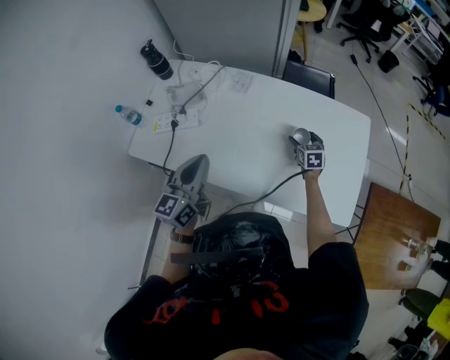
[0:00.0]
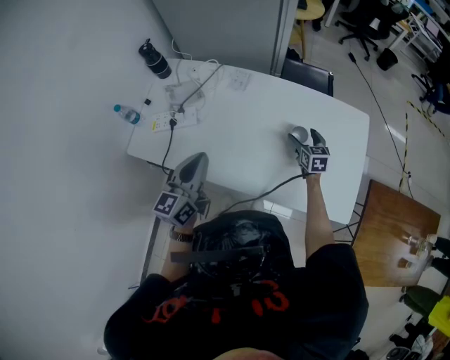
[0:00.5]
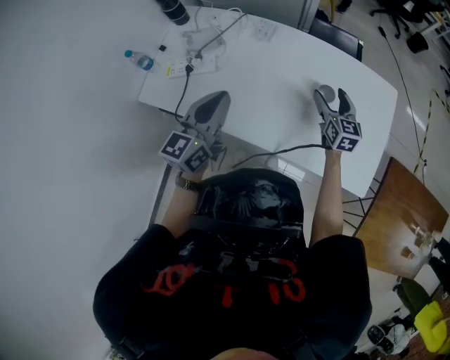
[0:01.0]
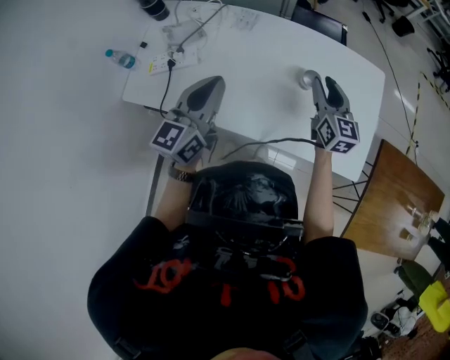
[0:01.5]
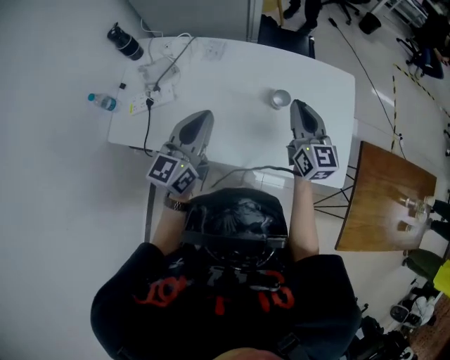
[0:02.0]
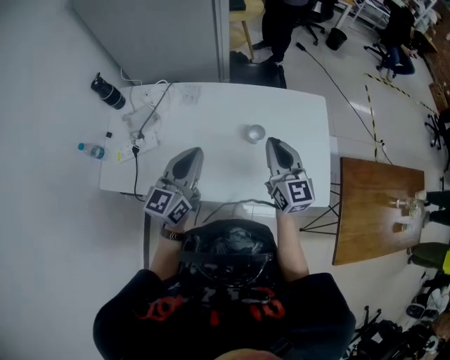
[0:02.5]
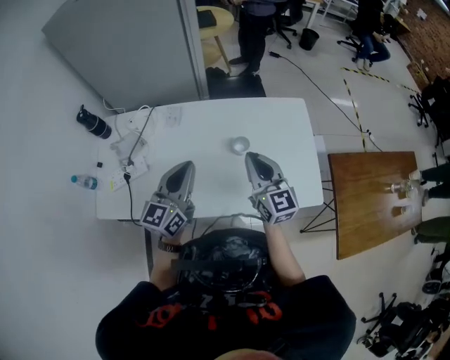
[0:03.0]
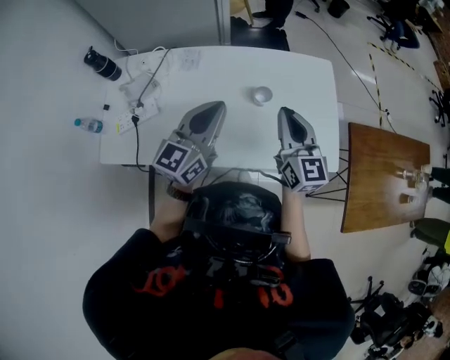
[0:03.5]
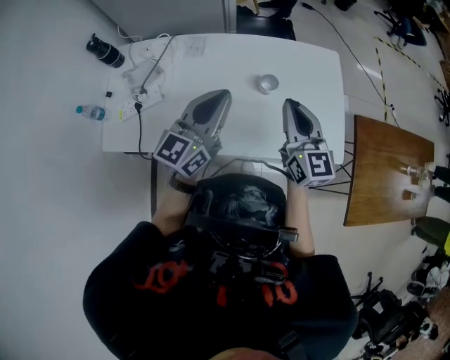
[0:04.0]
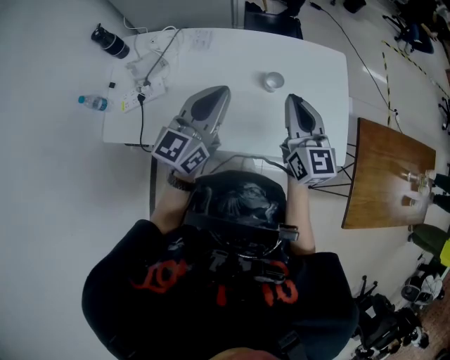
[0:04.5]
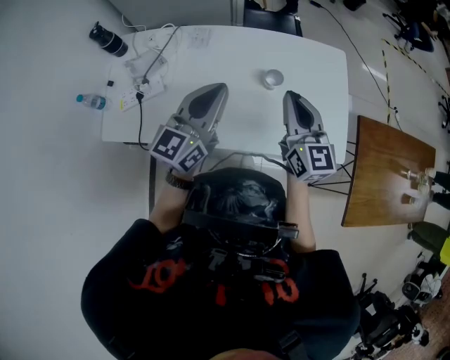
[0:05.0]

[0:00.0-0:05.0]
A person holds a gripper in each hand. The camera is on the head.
0:00.0 to 0:02.5: The left gripper is displaced to the right by approximately 10 cm, while the right gripper heads upward and backward, covering roughly 30 cm, angles its fingers upward, by some 40 degrees, and closes up.
0:02.5 to 0:05.0: There are only small adjustments of the grippers.

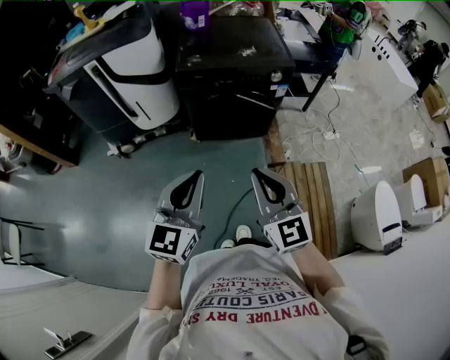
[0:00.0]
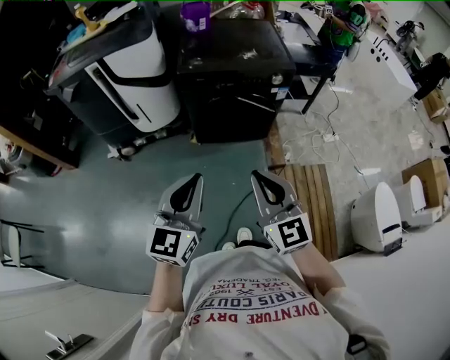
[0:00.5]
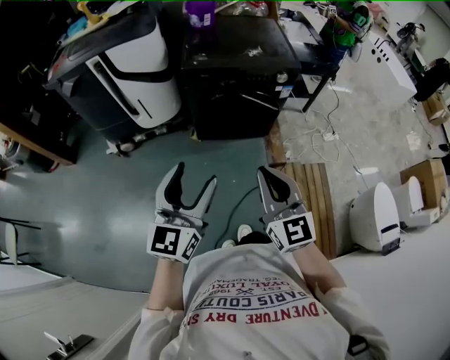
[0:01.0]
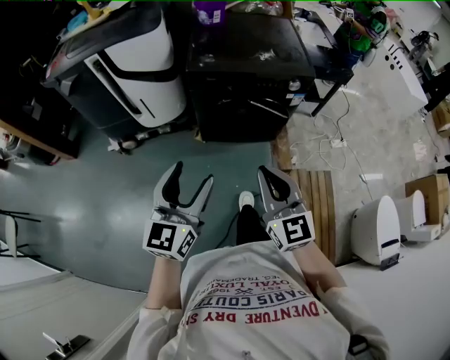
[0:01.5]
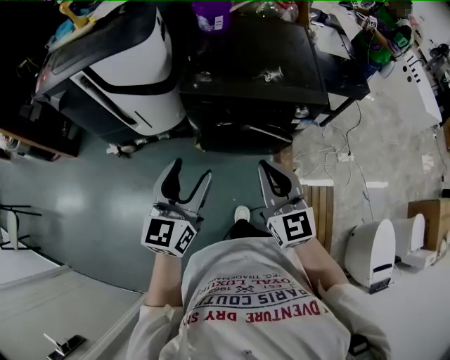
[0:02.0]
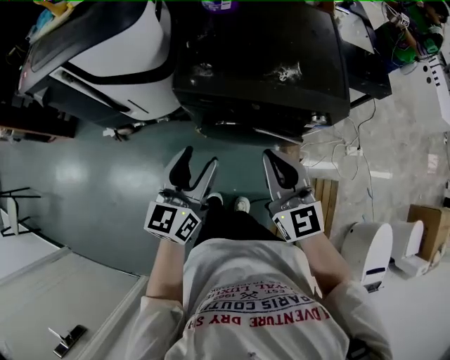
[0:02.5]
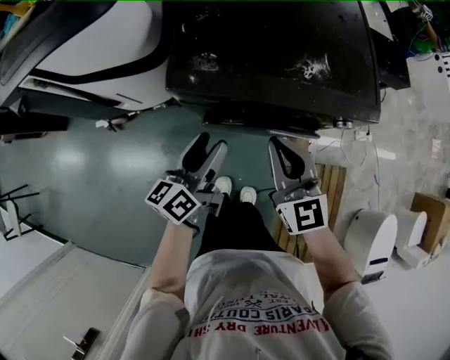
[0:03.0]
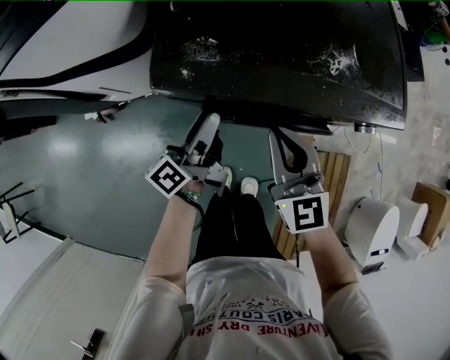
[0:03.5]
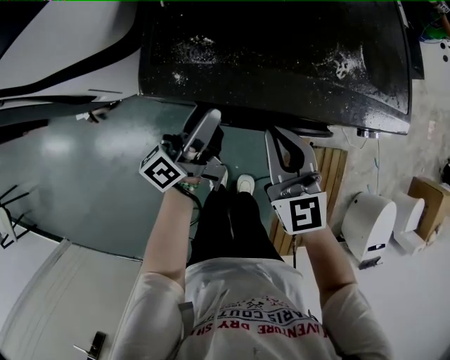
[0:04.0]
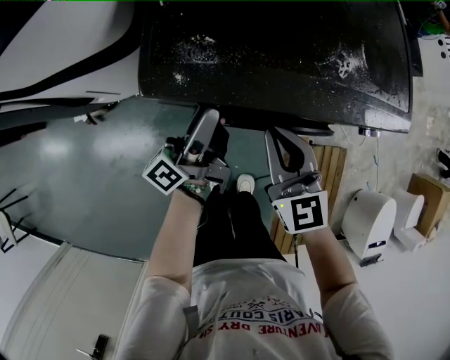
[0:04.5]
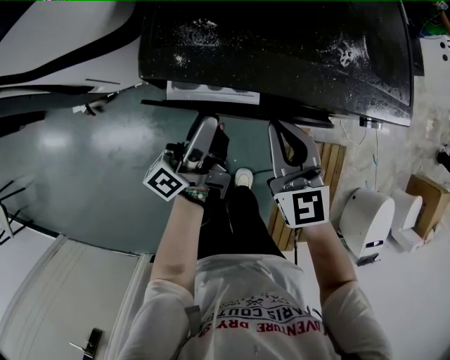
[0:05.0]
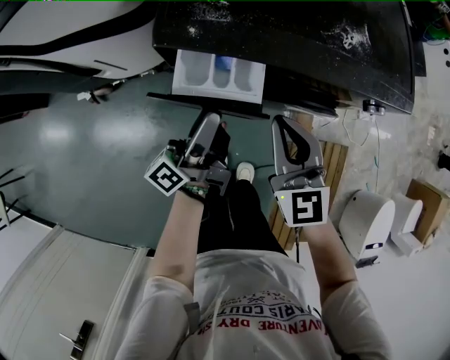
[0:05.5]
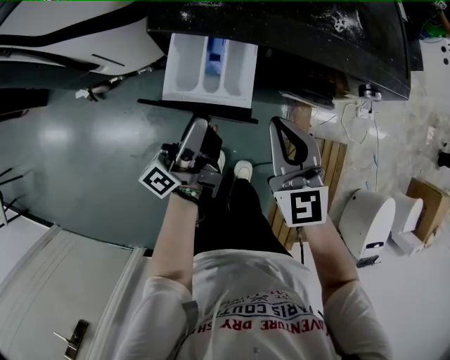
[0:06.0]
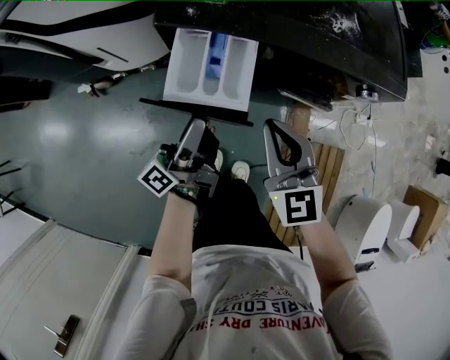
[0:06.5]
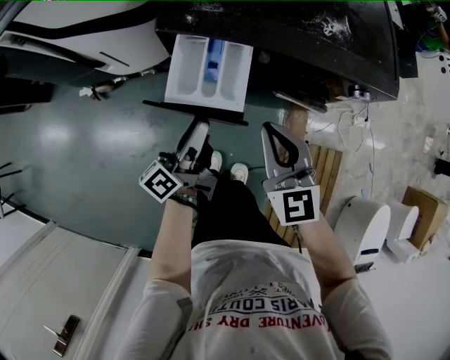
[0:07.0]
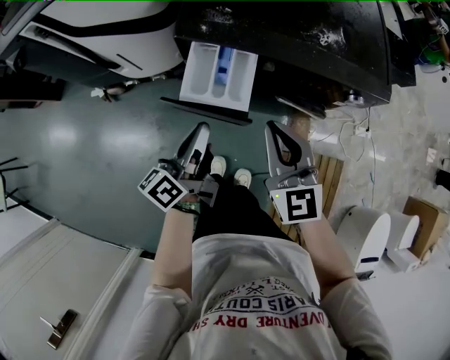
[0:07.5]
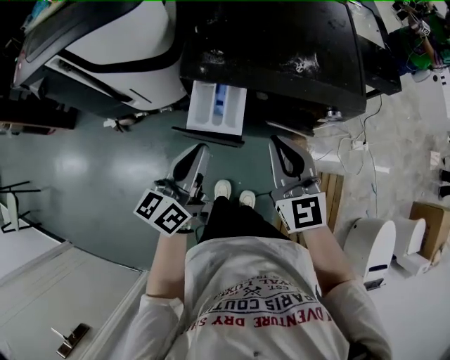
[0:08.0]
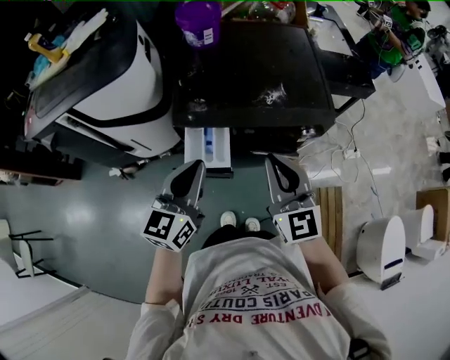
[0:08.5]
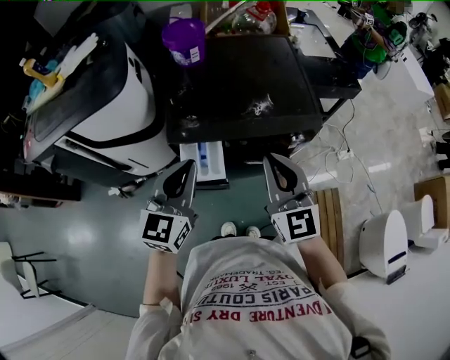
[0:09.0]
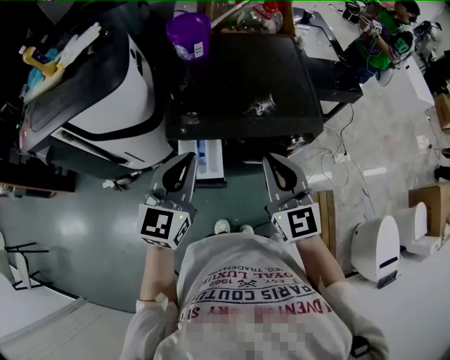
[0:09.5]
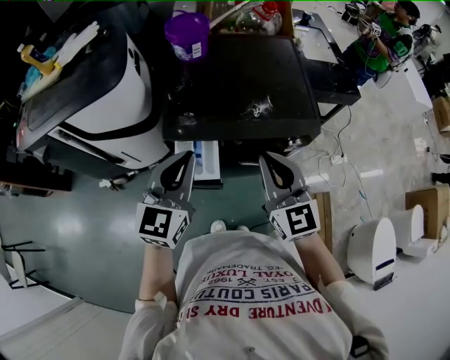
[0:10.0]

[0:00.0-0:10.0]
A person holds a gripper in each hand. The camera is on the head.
0:00.0 to 0:02.0: The two grippers go approximately 25 cm forward. The left gripper opens its fingers.
0:02.0 to 0:04.0: The two grippers go about 35 cm forward and downward. The left gripper rolls counterclockwise, seen from behind, by about 60 degrees.
0:04.0 to 0:06.0: Both grippers travel together backward, some 10 cm.
0:06.0 to 0:08.0: The two grippers go roughly 15 cm upward. The left gripper rotates about 50 degrees, and closes.
0:08.0 to 0:10.0: The left gripper travels upward and forward by roughly 15 cm, and rolls clockwise, seen from behind, by approximately 40 degrees; the right gripper shifts some 10 cm upward.

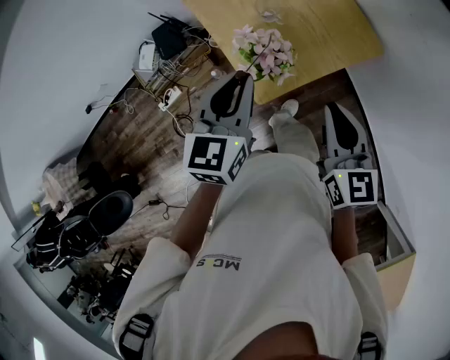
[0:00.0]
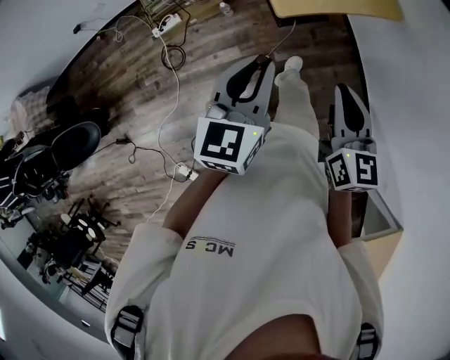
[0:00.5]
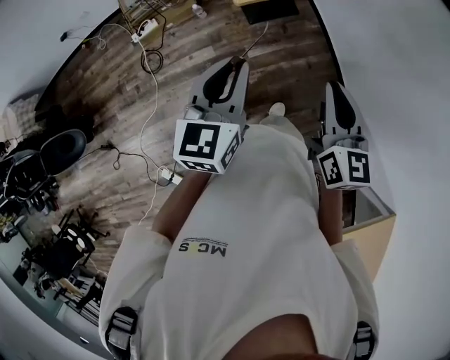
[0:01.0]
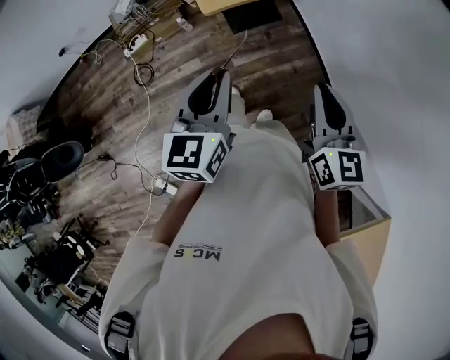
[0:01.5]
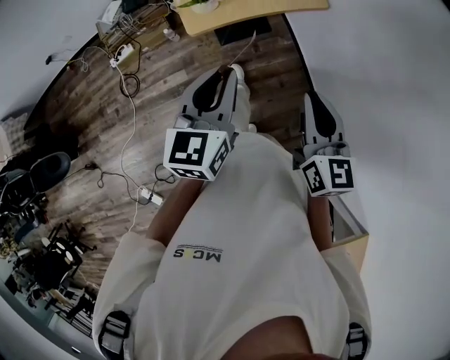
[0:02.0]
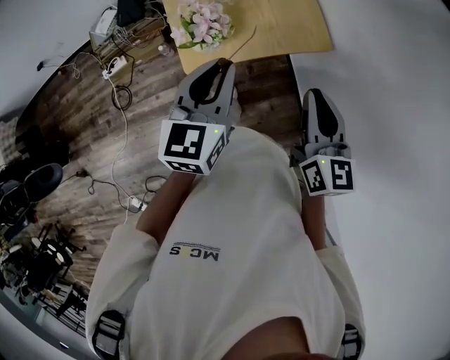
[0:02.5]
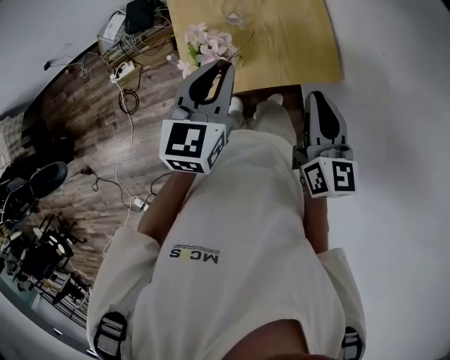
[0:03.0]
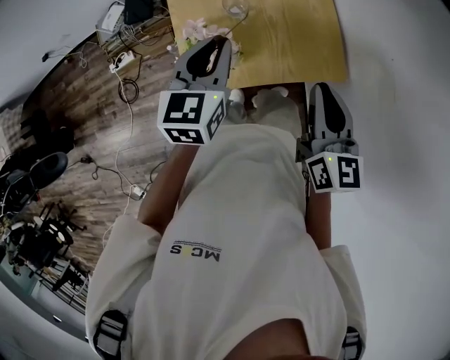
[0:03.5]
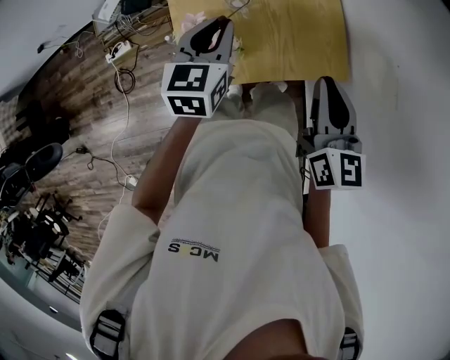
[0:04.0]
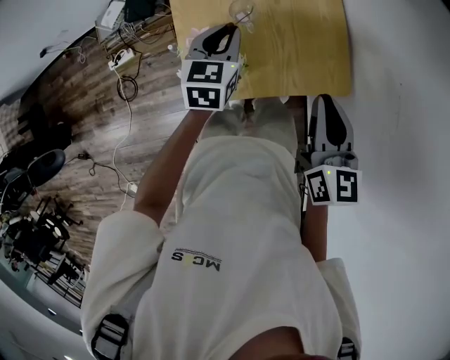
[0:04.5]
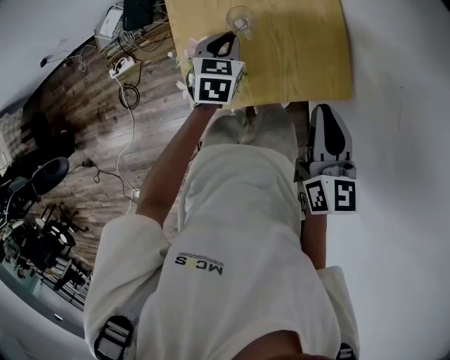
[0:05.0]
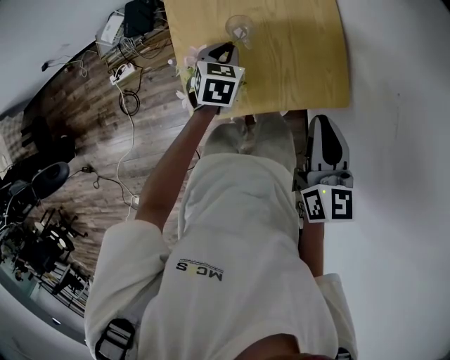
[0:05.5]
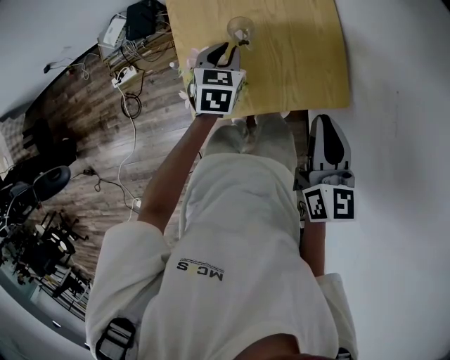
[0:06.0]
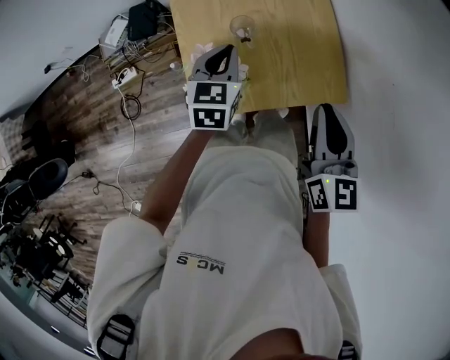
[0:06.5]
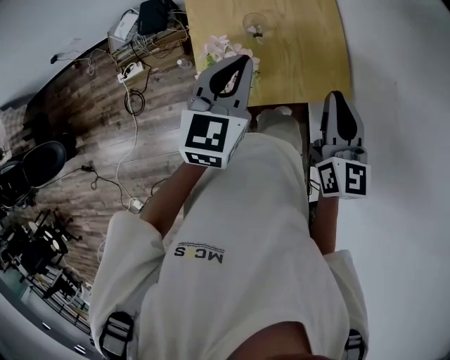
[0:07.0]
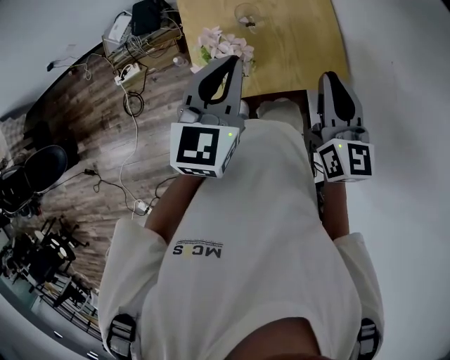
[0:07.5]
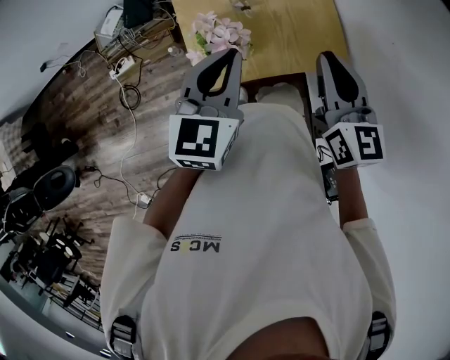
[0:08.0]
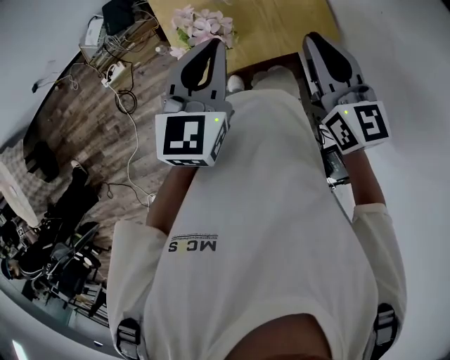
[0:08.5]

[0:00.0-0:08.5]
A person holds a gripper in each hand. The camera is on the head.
0:00.0 to 0:02.0: Both grippers move backward and to the right, roughly 30 cm.
0:02.0 to 0:04.0: Both grippers travel together forward, some 40 cm.
0:04.0 to 0:06.5: The left gripper goes downward and returns, about 15 cm each way.
0:06.5 to 0:08.5: The left gripper goes approximately 15 cm backward and upward.

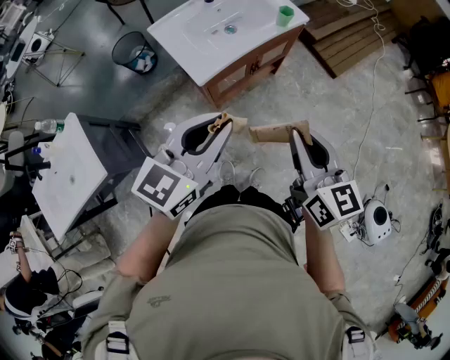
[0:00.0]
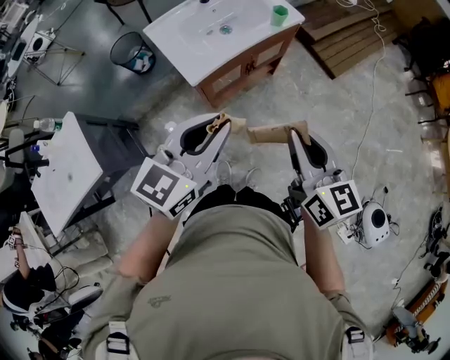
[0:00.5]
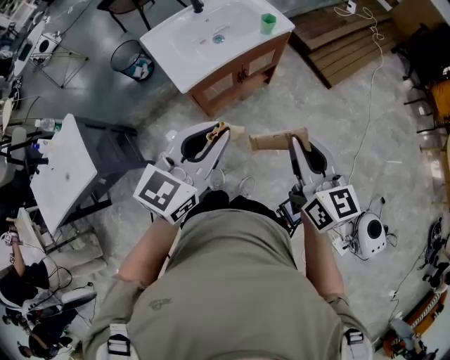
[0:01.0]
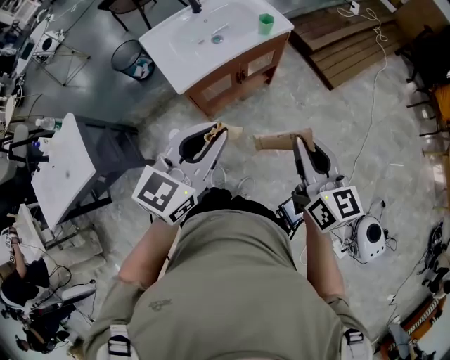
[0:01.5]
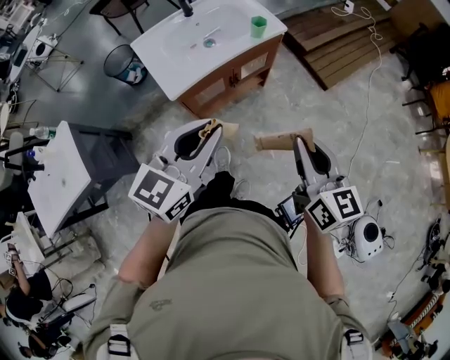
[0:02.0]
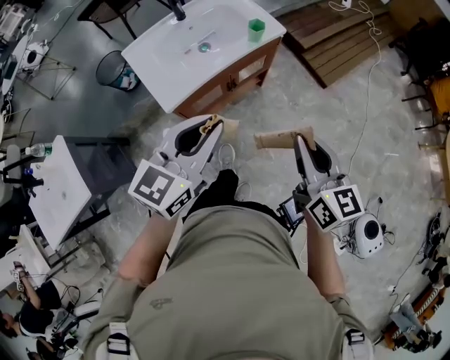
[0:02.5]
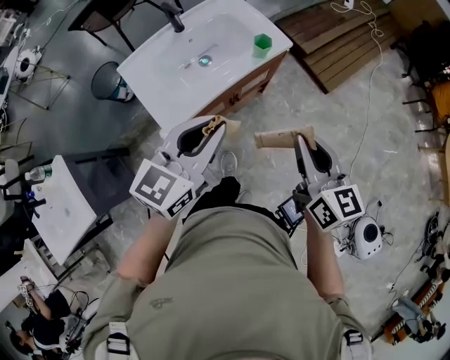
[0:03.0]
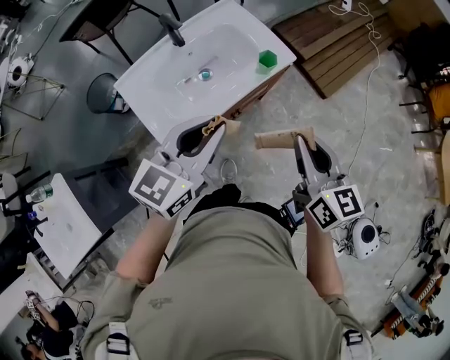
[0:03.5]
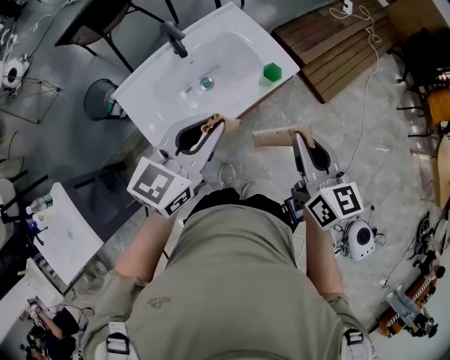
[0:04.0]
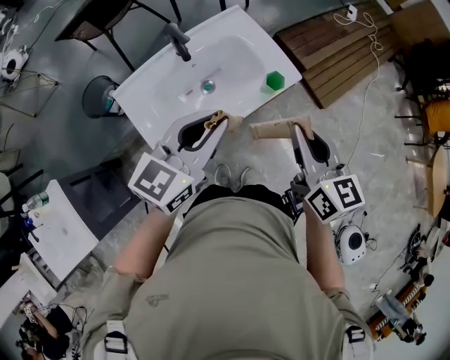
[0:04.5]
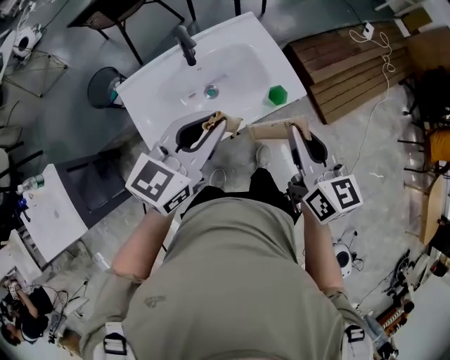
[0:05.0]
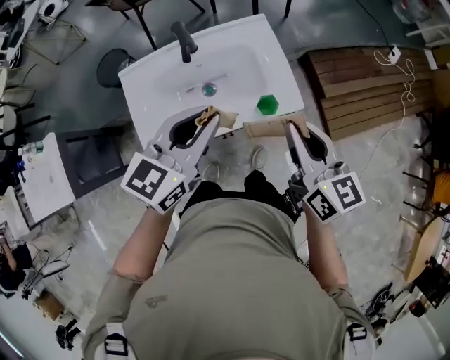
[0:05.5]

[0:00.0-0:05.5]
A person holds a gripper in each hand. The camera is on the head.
0:00.0 to 0:02.0: Both grippers move to the right, some 10 cm.
0:02.0 to 0:03.5: The grippers both shift forward by roughly 25 cm.
0:03.5 to 0:05.5: Both grippers move forward, approximately 20 cm. The right gripper turns by approximately 30 degrees; the left gripper swivels roughly 20 degrees.
